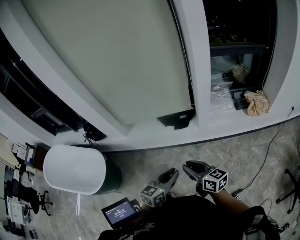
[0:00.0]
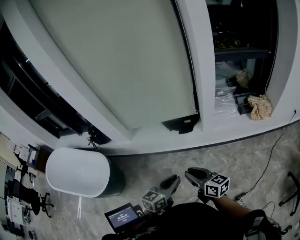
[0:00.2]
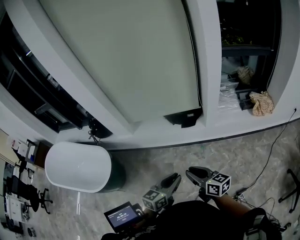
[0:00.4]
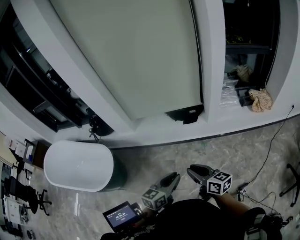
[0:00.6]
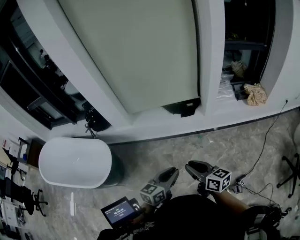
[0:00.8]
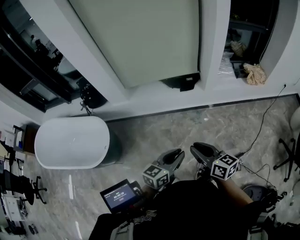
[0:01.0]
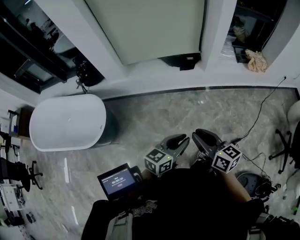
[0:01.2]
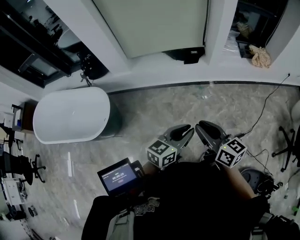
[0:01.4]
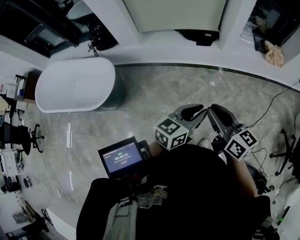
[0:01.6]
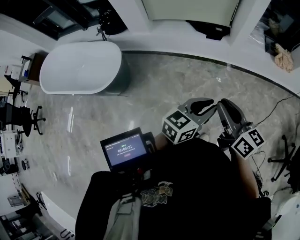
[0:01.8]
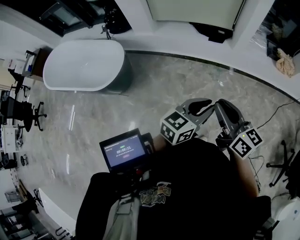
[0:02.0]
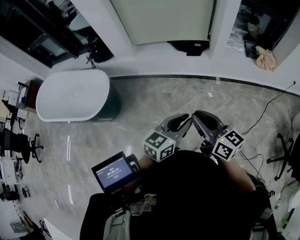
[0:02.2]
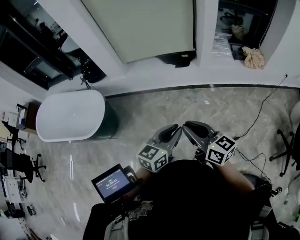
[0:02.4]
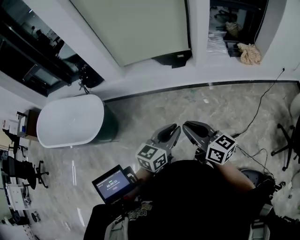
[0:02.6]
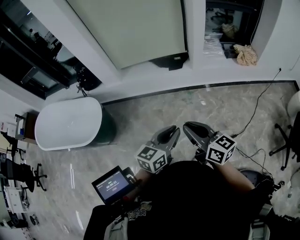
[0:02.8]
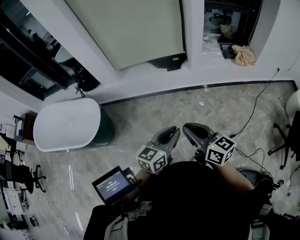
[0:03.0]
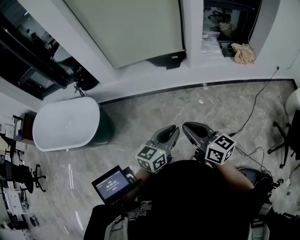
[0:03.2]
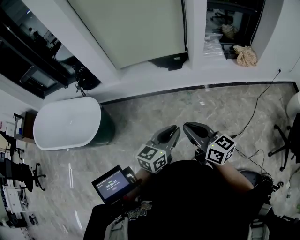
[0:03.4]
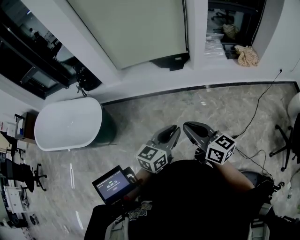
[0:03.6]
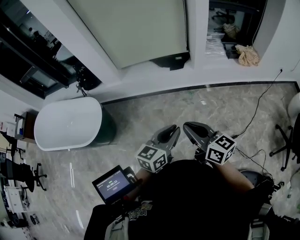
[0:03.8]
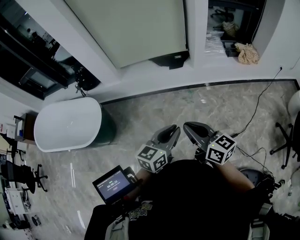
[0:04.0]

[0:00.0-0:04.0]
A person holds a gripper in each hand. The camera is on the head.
0.0 to 1.4 s: Both grippers travel together backward and to the left, approximately 20 cm.
1.4 to 2.6 s: The two grippers go approximately 5 cm to the right.
2.6 to 4.0 s: The grippers make only small movements.

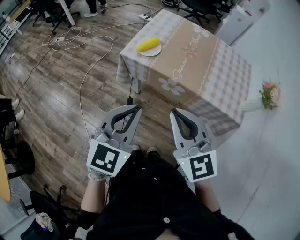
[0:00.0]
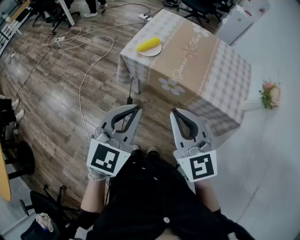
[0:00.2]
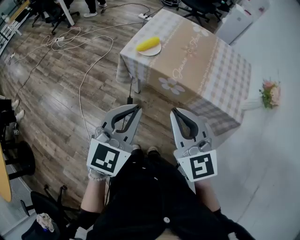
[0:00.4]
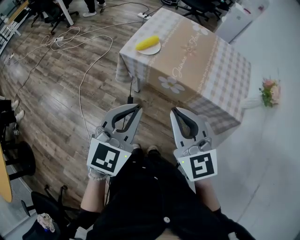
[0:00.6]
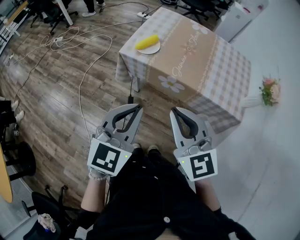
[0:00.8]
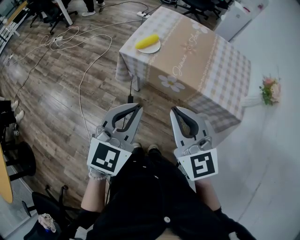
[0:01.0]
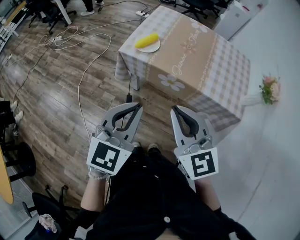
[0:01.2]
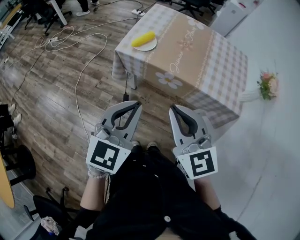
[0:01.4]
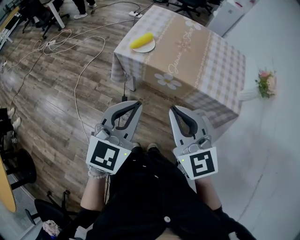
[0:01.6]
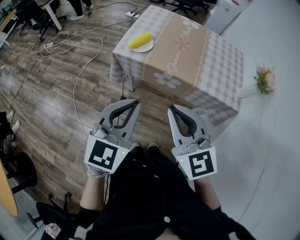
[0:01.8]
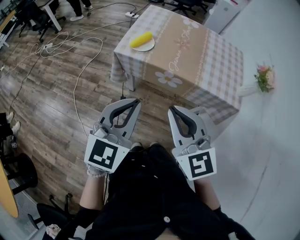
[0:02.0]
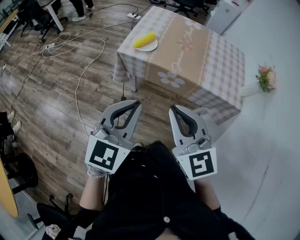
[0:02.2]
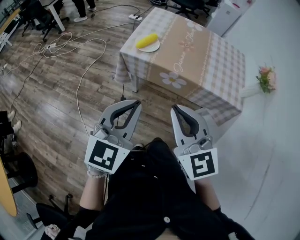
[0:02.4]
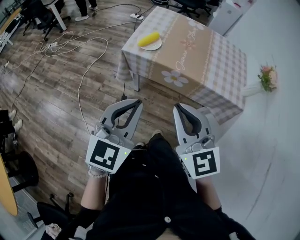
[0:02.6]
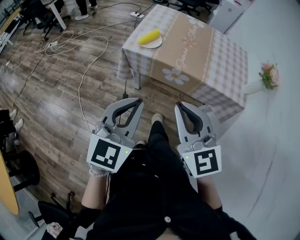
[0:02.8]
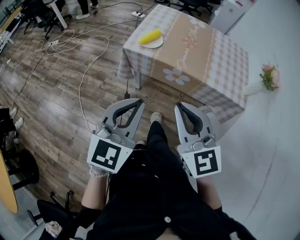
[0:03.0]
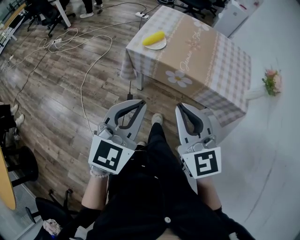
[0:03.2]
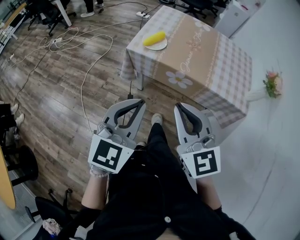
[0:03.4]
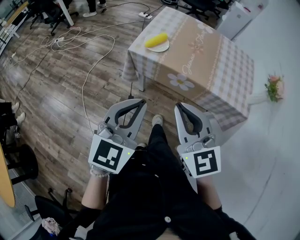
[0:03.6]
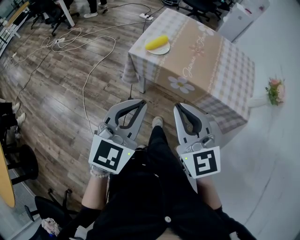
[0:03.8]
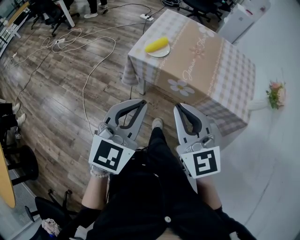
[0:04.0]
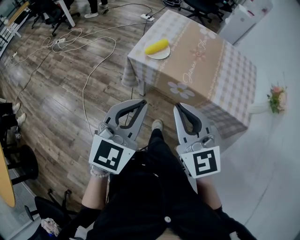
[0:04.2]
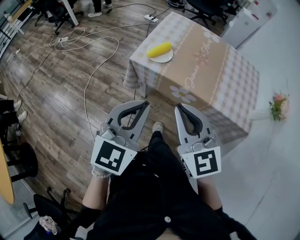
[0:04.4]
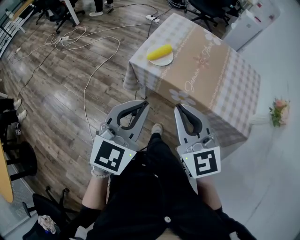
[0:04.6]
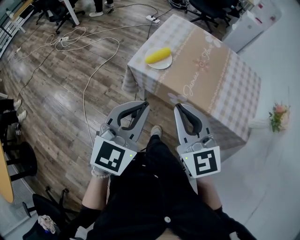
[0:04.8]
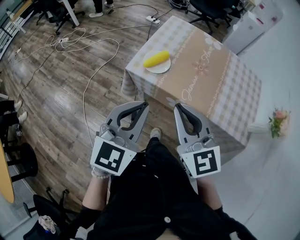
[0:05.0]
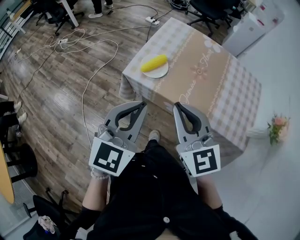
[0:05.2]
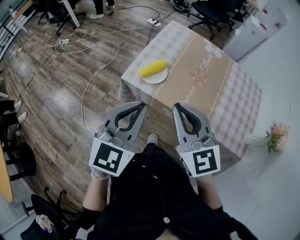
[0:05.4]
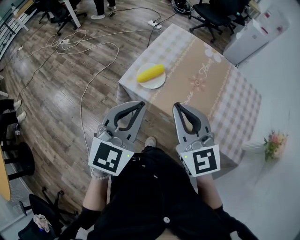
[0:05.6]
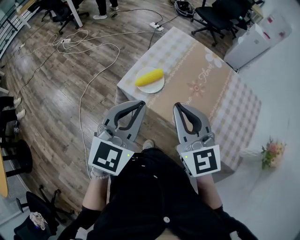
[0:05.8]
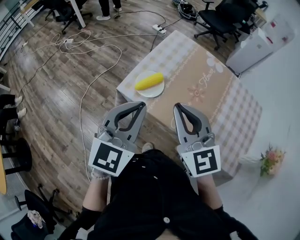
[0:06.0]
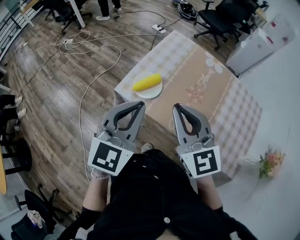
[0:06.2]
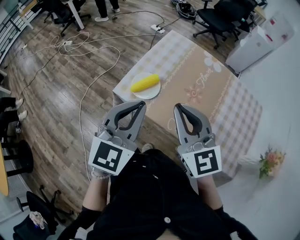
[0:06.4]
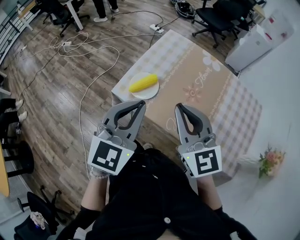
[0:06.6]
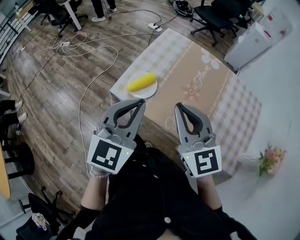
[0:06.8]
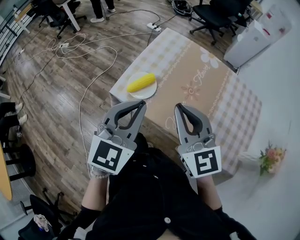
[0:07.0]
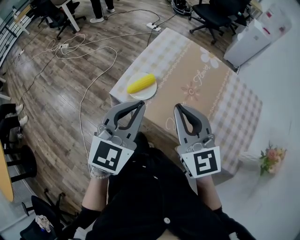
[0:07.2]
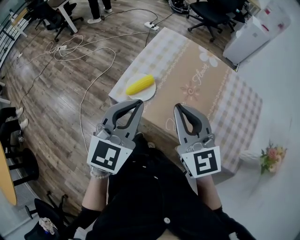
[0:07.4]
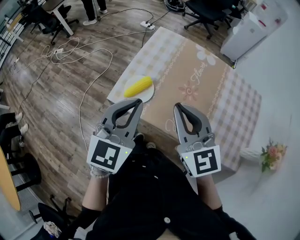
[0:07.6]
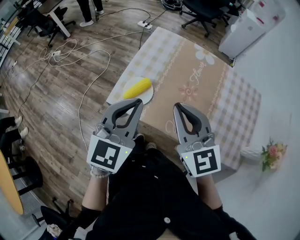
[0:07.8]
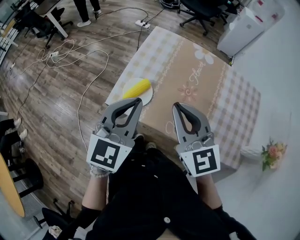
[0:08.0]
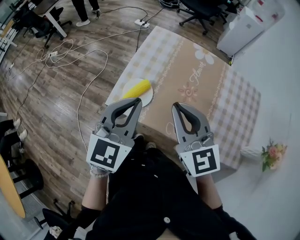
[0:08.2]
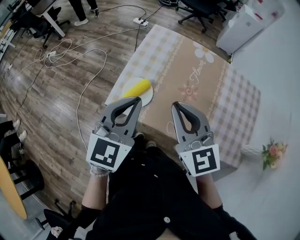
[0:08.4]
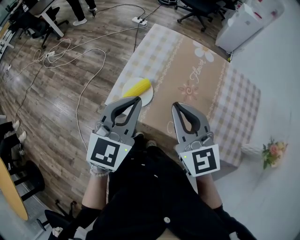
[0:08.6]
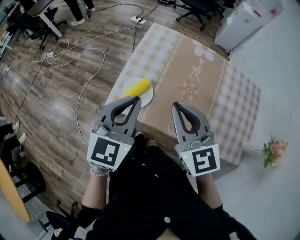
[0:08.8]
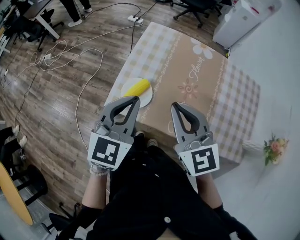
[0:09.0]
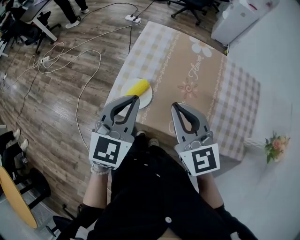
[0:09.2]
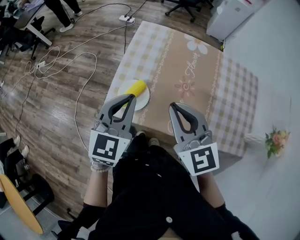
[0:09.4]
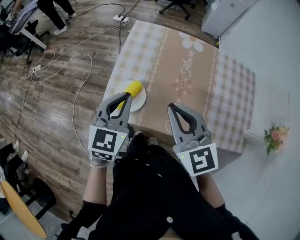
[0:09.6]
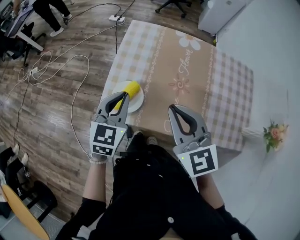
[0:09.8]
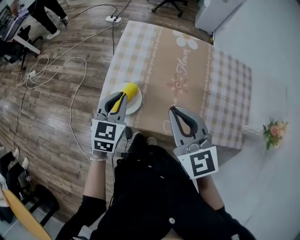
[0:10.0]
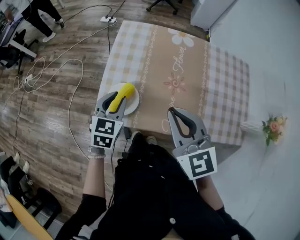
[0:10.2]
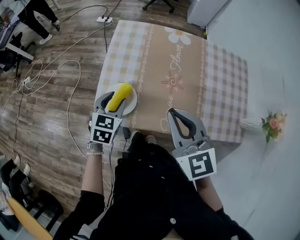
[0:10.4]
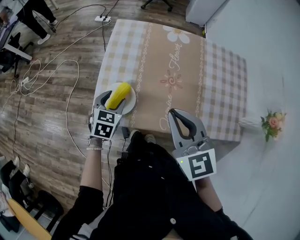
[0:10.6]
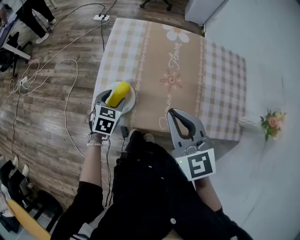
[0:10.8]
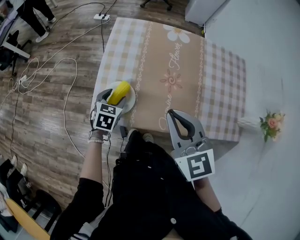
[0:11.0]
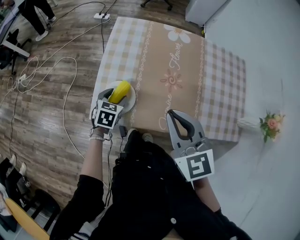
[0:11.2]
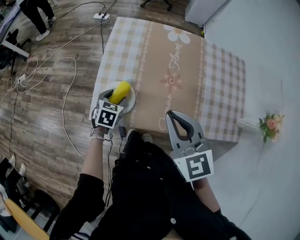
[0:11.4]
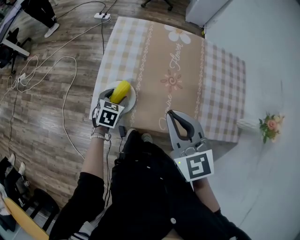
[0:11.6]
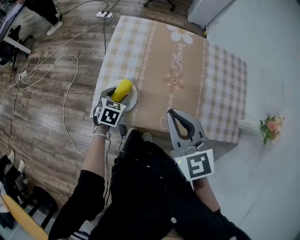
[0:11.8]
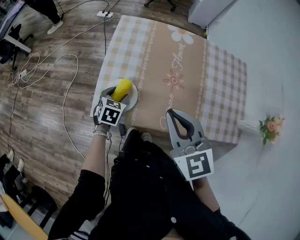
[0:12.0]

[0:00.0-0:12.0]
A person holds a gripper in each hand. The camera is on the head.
0.0 to 1.6 s: The grippers stay close to where they were, moving slightly.
1.6 to 3.0 s: The right gripper moves some 5 cm. The left gripper ends up some 5 cm from where it was.
3.0 to 4.4 s: The grippers both shift forward by roughly 10 cm.
4.4 to 6.0 s: Both grippers move forward, approximately 20 cm.
6.0 to 7.6 s: The right gripper ends up some 5 cm from where it was, while the left gripper is displaced forward by some 5 cm.
7.6 to 9.0 s: The left gripper shifts about 5 cm forward.
9.0 to 10.4 s: The left gripper shifts approximately 20 cm downward and forward, changes its angle by about 20 degrees, and opens its fingers.
10.4 to 12.0 s: The left gripper goes roughly 10 cm downward.

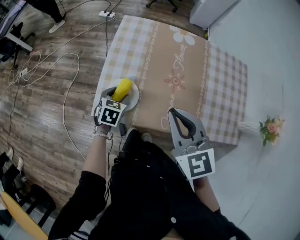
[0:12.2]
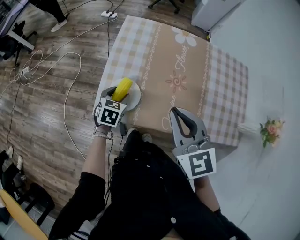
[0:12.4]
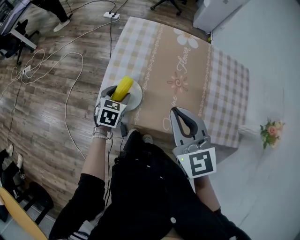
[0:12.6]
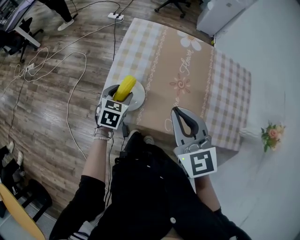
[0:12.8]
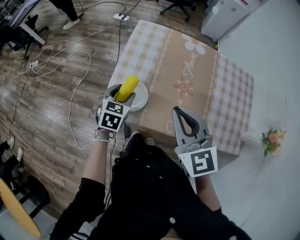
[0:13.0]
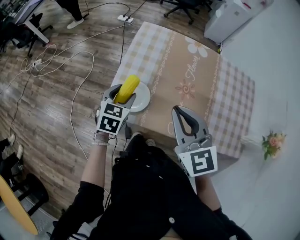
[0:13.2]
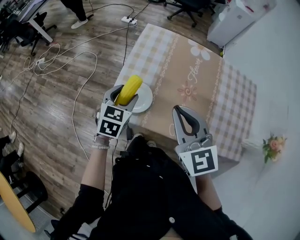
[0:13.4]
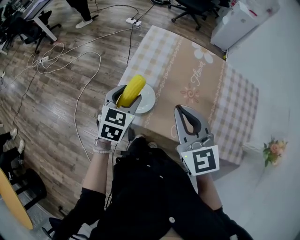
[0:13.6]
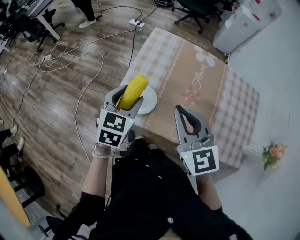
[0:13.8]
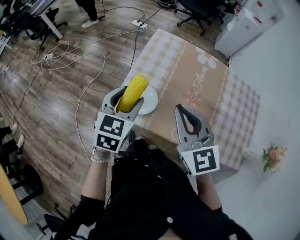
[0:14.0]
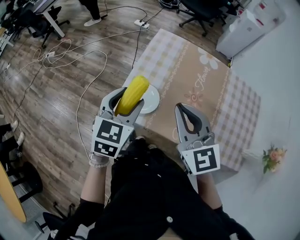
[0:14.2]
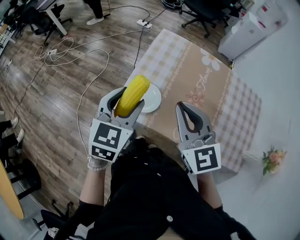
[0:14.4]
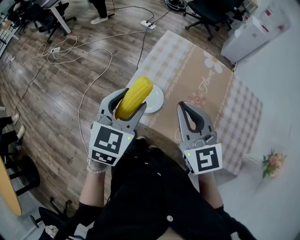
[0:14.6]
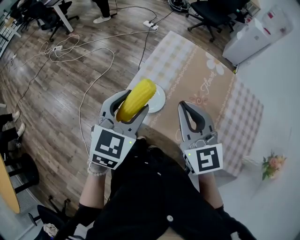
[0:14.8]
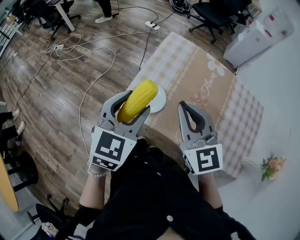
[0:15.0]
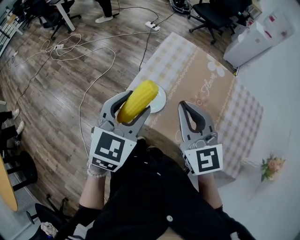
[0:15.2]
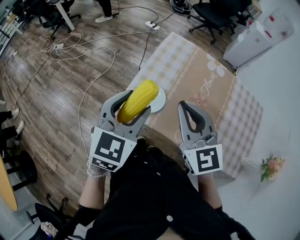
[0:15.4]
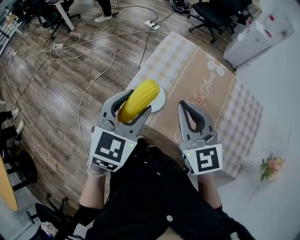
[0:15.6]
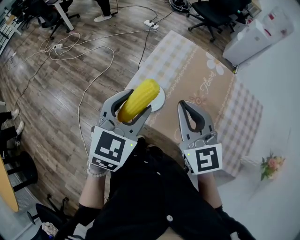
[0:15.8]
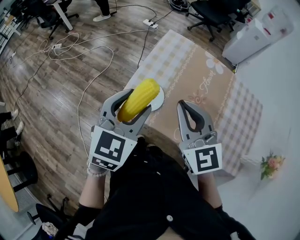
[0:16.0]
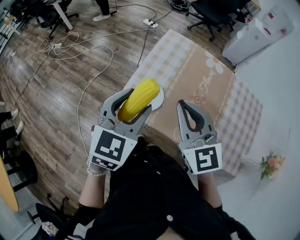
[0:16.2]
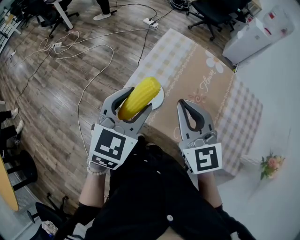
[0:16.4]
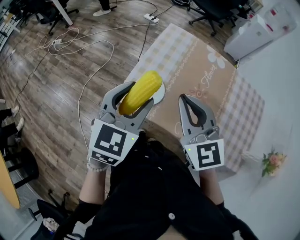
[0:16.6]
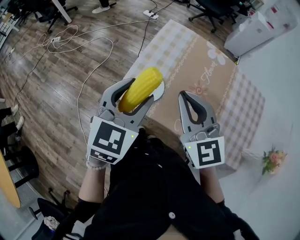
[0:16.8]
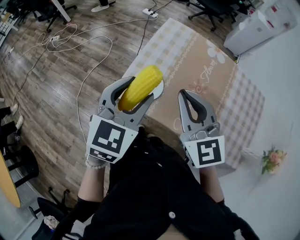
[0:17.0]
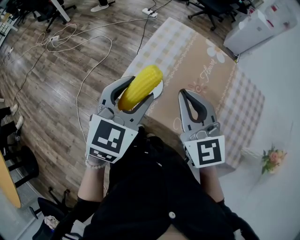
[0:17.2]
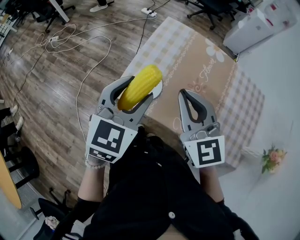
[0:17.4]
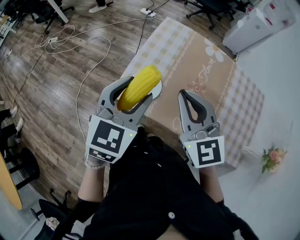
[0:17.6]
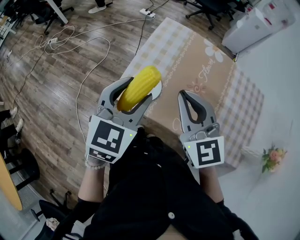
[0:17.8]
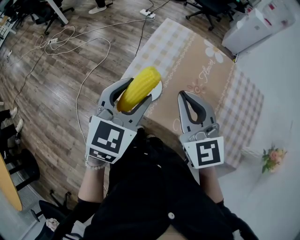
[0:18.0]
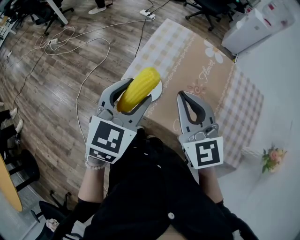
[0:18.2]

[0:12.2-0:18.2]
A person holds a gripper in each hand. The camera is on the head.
12.2 to 13.8 s: The left gripper moves upward, roughly 20 cm, and changes its angle by roughly 20 degrees, while the right gripper ends up roughly 5 cm from where it was.
13.8 to 15.2 s: The left gripper goes approximately 10 cm upward and backward.
15.2 to 16.6 s: There are only small adjustments of the grippers.
16.6 to 18.2 s: Neither gripper changes place.

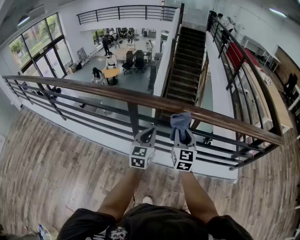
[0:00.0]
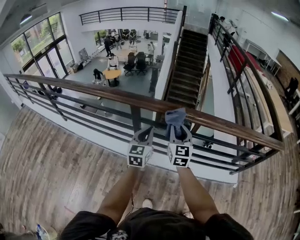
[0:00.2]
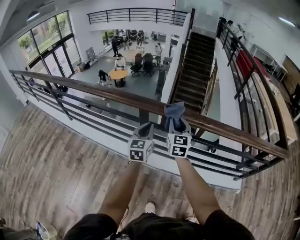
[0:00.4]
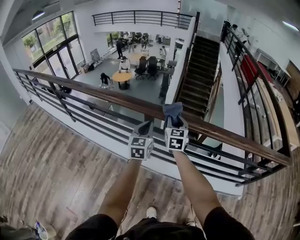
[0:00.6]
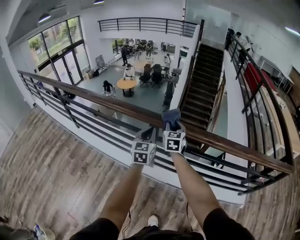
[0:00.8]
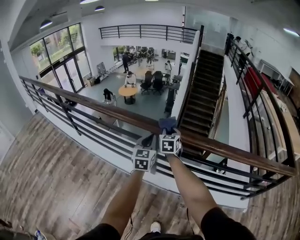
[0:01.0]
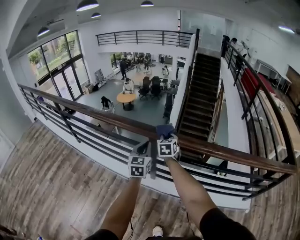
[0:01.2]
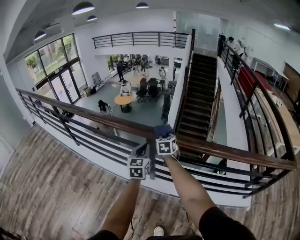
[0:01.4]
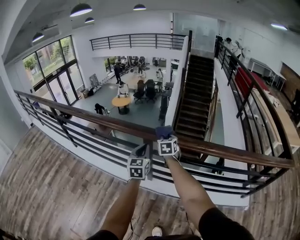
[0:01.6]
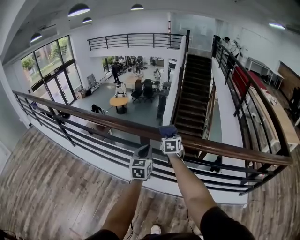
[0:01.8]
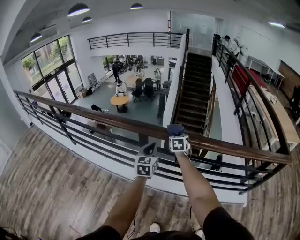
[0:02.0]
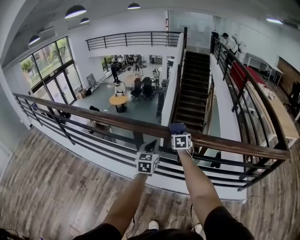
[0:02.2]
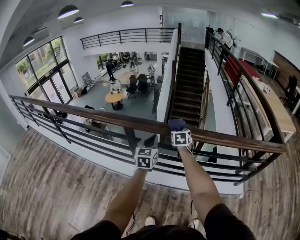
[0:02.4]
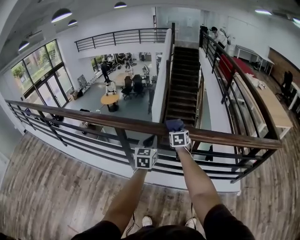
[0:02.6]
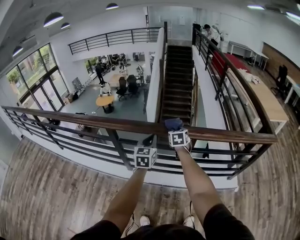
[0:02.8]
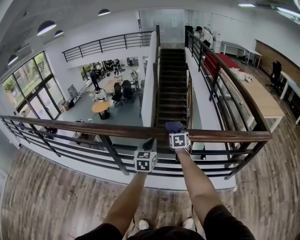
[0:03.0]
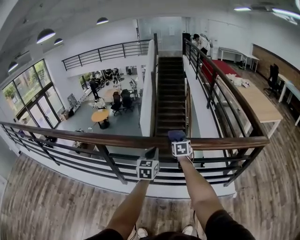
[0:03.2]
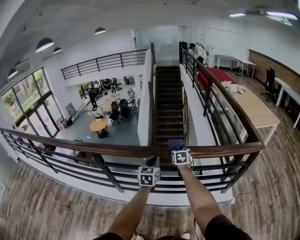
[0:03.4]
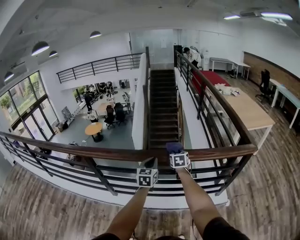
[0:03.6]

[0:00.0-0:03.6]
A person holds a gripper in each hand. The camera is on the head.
0.0 to 1.8 s: The left gripper moves to the left and forward, about 15 cm, while the right gripper heads forward and to the left, covering approximately 25 cm, and swivels some 30 degrees.
1.8 to 3.6 s: The pair of grippers is taken to the right, about 60 cm.
